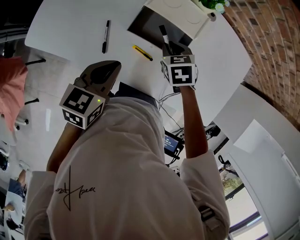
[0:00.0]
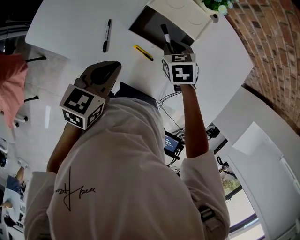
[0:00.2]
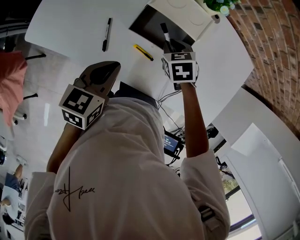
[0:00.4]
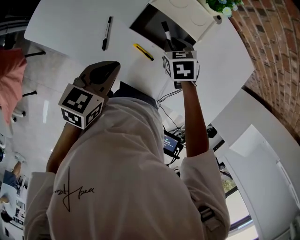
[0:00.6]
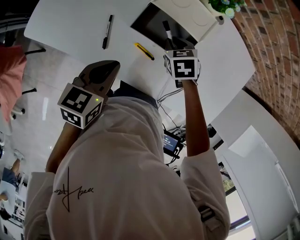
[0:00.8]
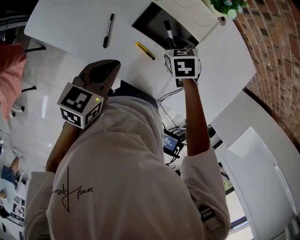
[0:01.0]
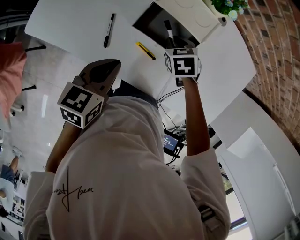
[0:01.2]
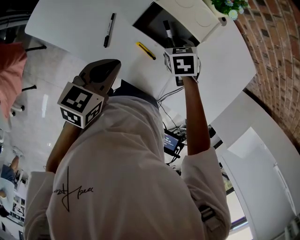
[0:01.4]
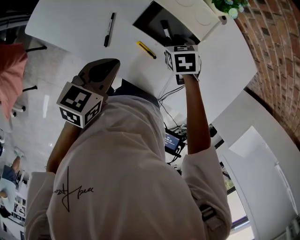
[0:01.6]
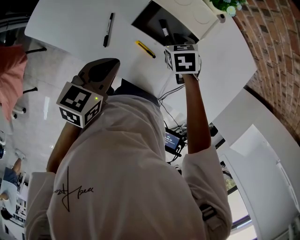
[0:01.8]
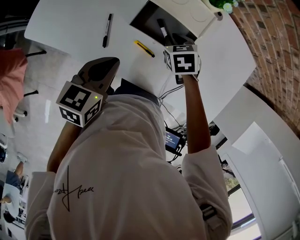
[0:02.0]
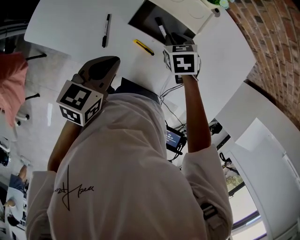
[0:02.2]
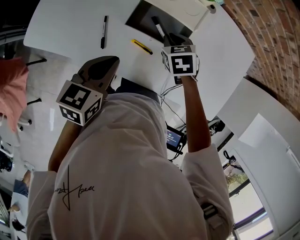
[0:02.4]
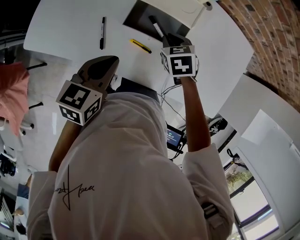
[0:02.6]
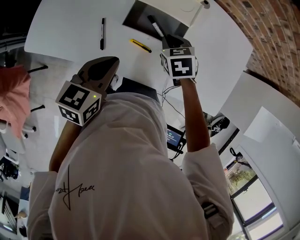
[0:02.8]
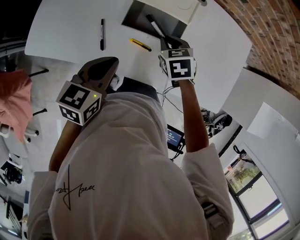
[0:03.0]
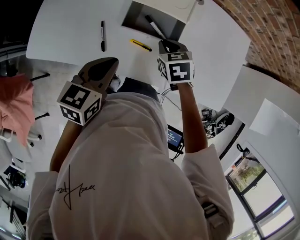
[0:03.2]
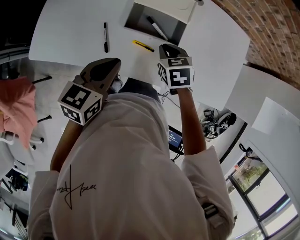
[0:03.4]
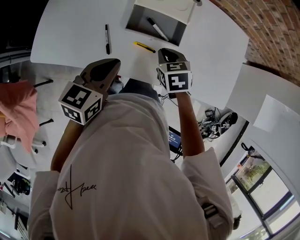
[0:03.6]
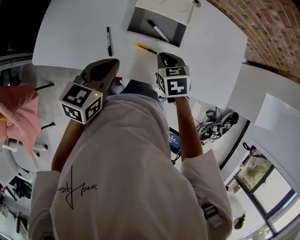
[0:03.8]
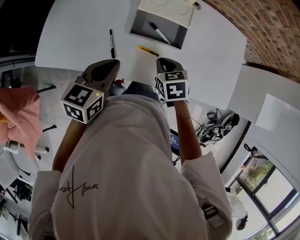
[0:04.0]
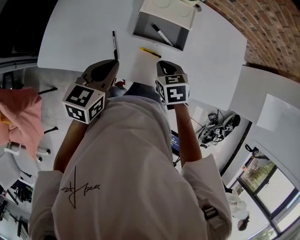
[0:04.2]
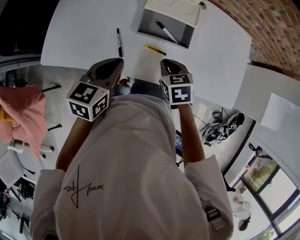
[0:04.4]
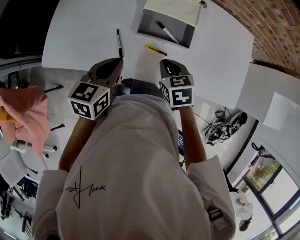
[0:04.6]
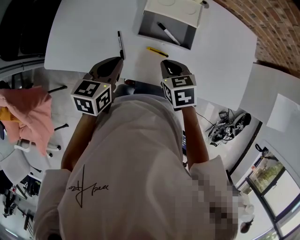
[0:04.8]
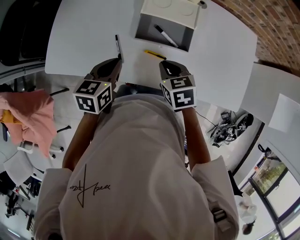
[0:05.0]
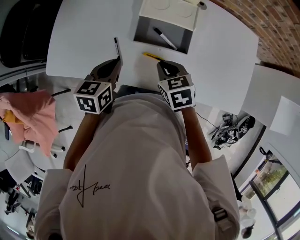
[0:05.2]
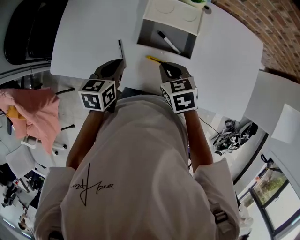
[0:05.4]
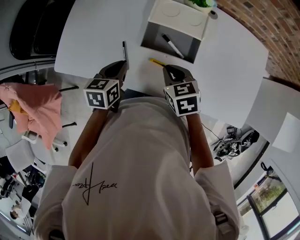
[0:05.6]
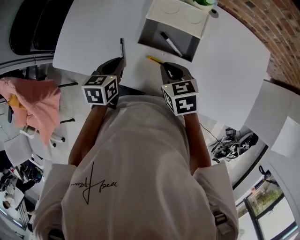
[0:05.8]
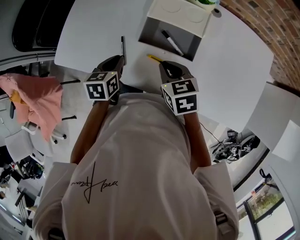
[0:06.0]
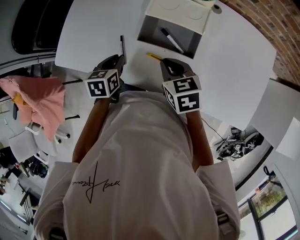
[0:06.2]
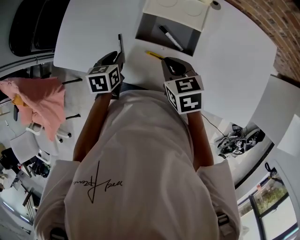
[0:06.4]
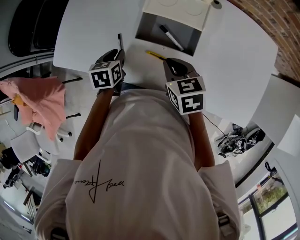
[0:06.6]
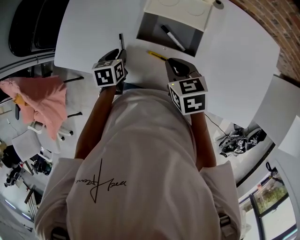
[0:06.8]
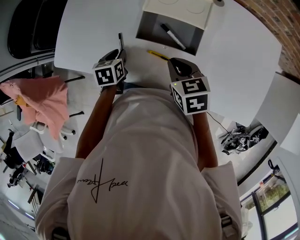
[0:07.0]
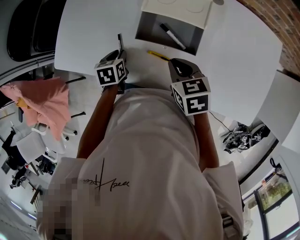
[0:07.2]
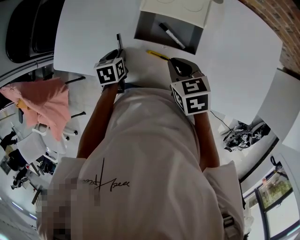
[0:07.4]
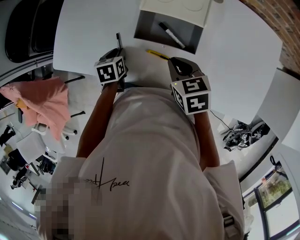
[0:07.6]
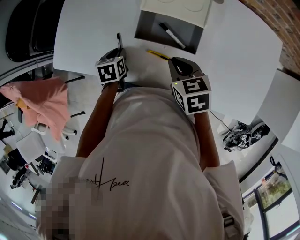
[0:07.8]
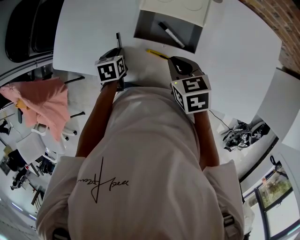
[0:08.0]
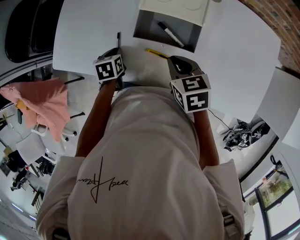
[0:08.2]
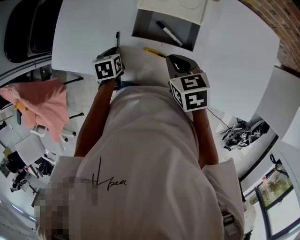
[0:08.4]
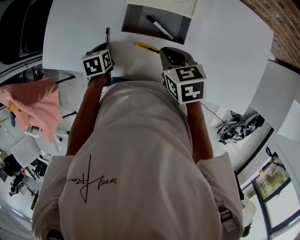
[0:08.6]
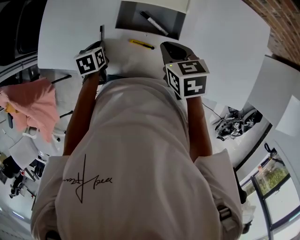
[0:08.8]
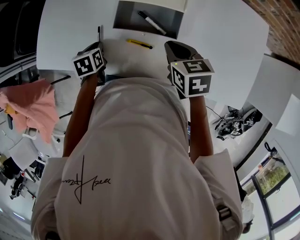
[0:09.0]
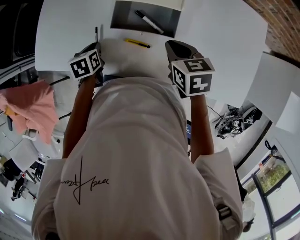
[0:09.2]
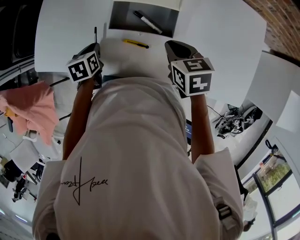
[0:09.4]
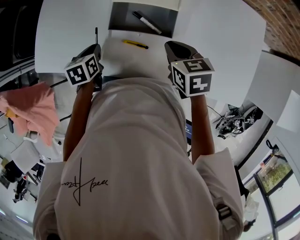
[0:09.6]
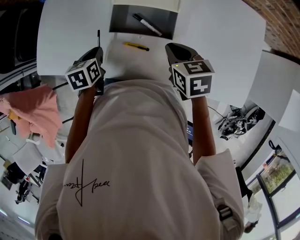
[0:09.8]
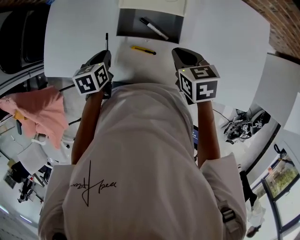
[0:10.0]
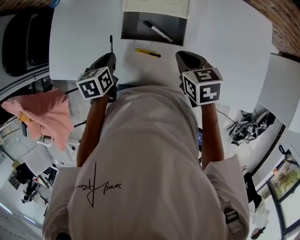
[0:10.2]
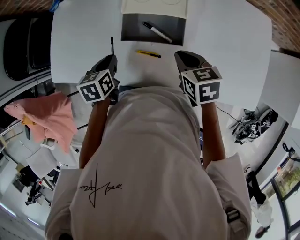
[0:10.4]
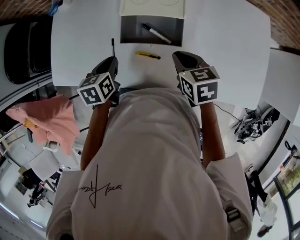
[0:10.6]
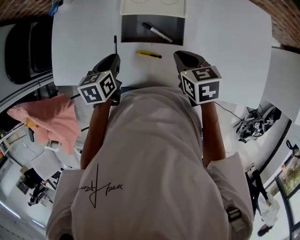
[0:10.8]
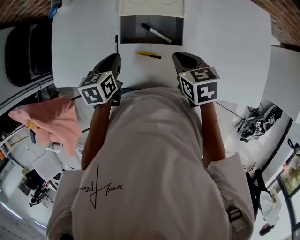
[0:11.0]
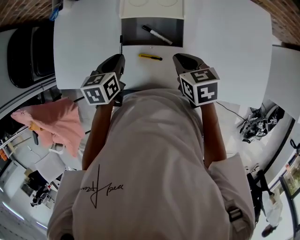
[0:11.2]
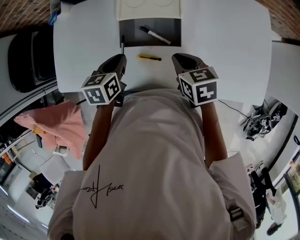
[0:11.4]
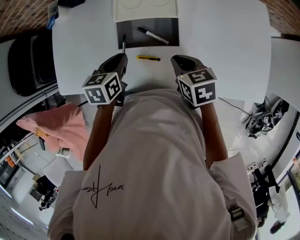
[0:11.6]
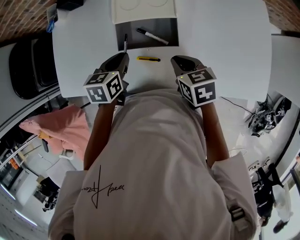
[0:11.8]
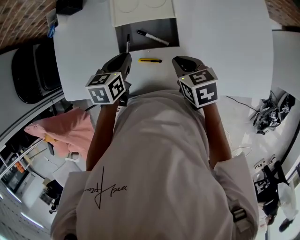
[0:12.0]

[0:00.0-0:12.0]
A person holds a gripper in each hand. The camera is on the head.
0:00.0 to 0:01.6: The grippers make only small movements.
0:01.6 to 0:03.0: The right gripper travels upward by approximately 5 cm.
0:03.0 to 0:04.4: The left gripper heads to the left, covering roughly 5 cm. Meanwhile the right gripper is displaced backward by approximately 10 cm.
0:04.4 to 0:06.0: The left gripper moves downward and forward, about 10 cm, and rotates some 30 degrees.
0:06.0 to 0:07.6: The left gripper is displaced downward by roughly 10 cm.
0:07.6 to 0:09.0: The right gripper travels to the right by about 5 cm.
0:09.0 to 0:10.4: The left gripper goes about 10 cm upward.
0:10.4 to 0:12.0: The left gripper is displaced to the right by approximately 10 cm.

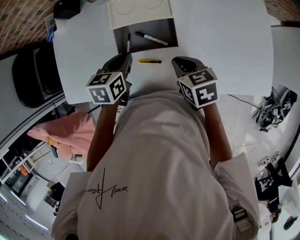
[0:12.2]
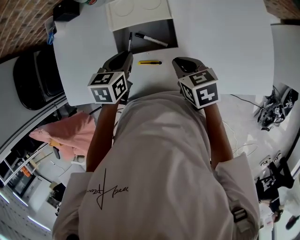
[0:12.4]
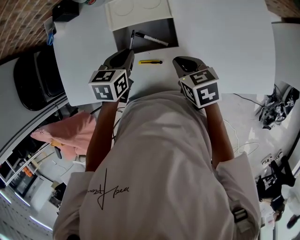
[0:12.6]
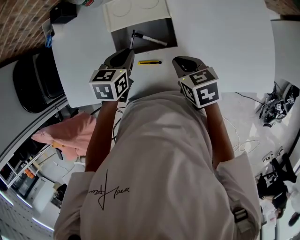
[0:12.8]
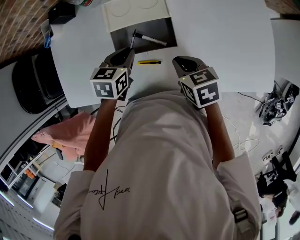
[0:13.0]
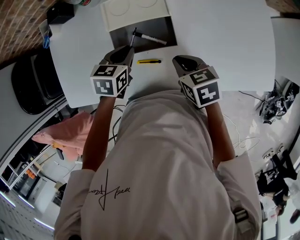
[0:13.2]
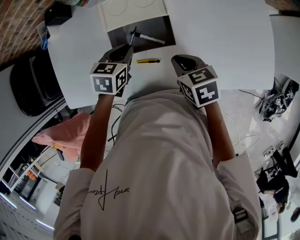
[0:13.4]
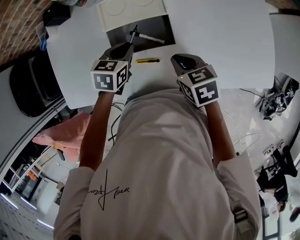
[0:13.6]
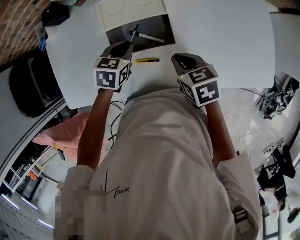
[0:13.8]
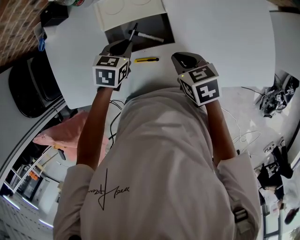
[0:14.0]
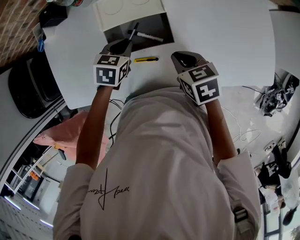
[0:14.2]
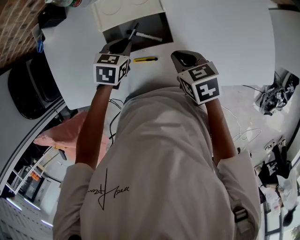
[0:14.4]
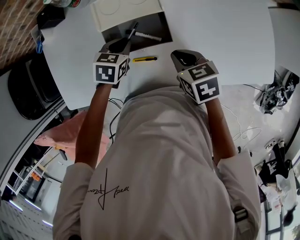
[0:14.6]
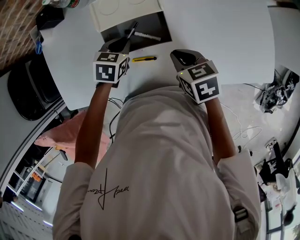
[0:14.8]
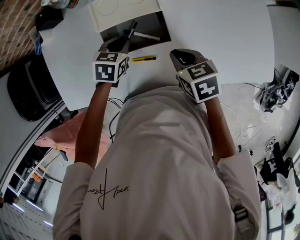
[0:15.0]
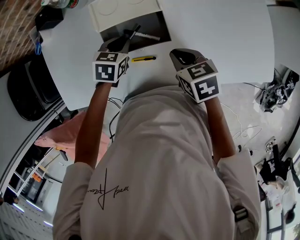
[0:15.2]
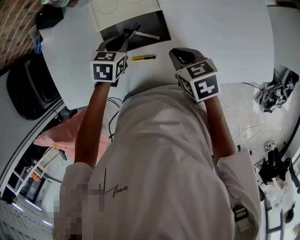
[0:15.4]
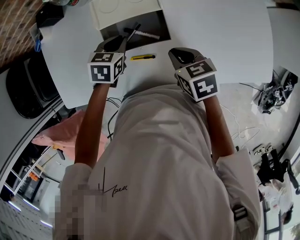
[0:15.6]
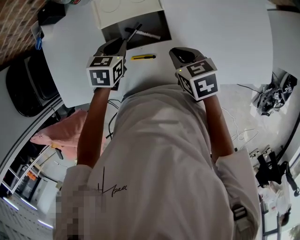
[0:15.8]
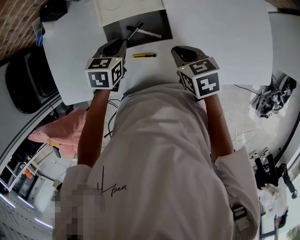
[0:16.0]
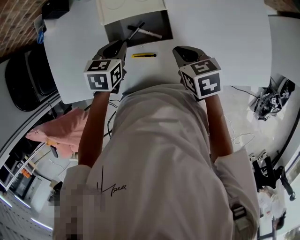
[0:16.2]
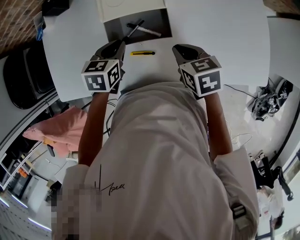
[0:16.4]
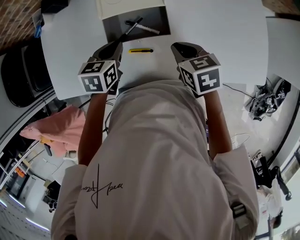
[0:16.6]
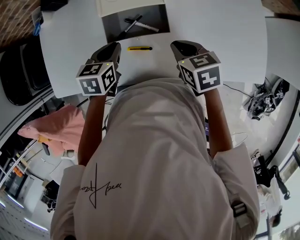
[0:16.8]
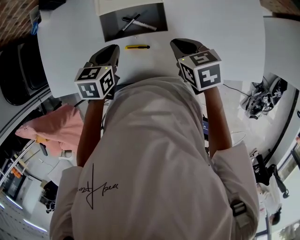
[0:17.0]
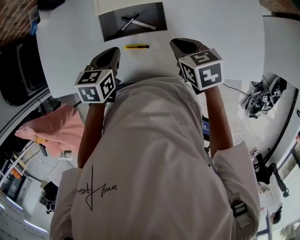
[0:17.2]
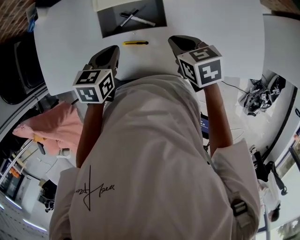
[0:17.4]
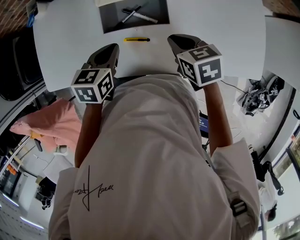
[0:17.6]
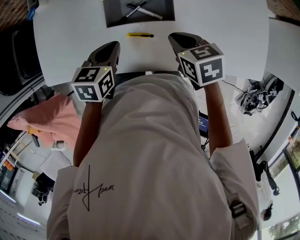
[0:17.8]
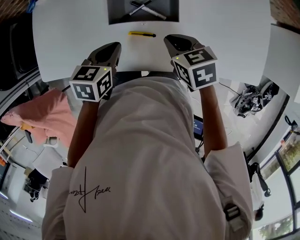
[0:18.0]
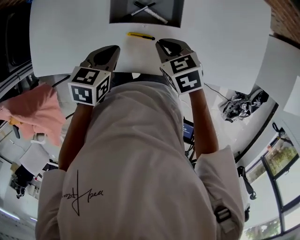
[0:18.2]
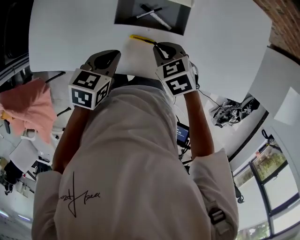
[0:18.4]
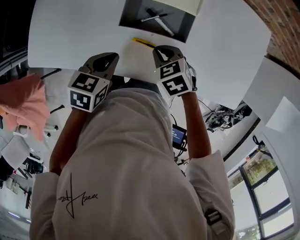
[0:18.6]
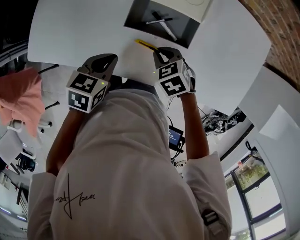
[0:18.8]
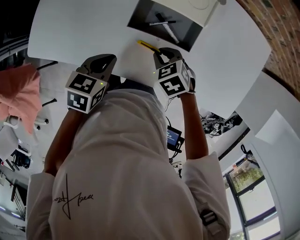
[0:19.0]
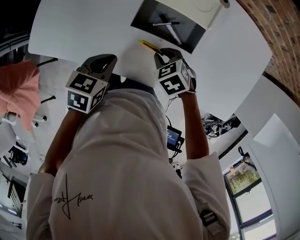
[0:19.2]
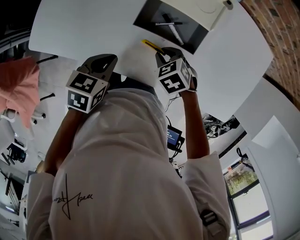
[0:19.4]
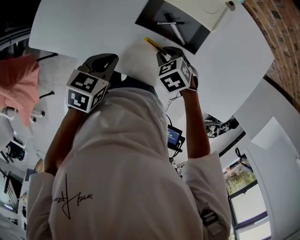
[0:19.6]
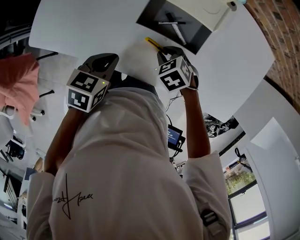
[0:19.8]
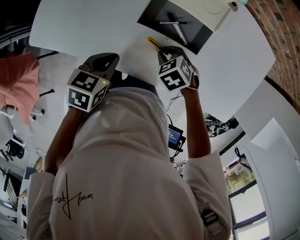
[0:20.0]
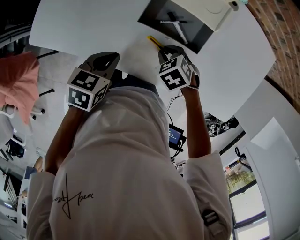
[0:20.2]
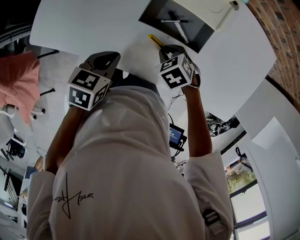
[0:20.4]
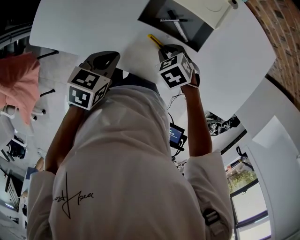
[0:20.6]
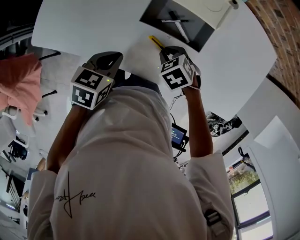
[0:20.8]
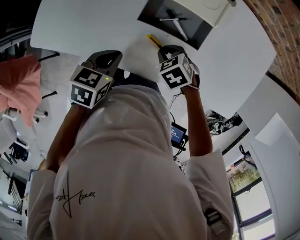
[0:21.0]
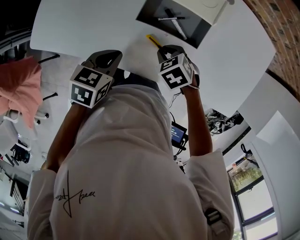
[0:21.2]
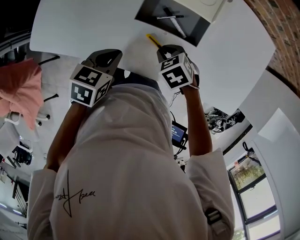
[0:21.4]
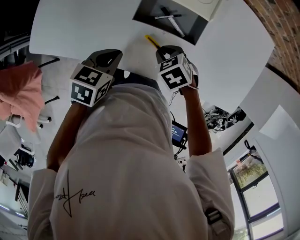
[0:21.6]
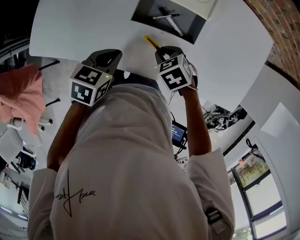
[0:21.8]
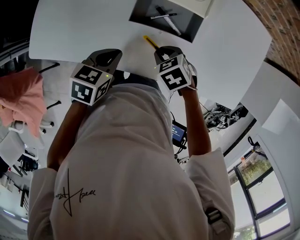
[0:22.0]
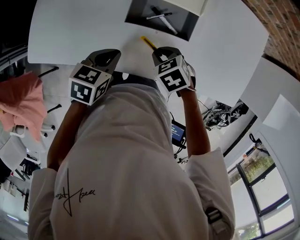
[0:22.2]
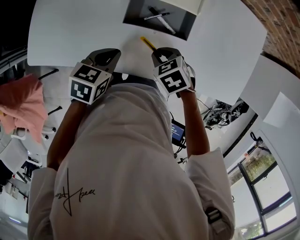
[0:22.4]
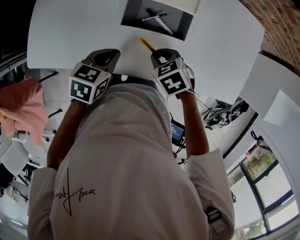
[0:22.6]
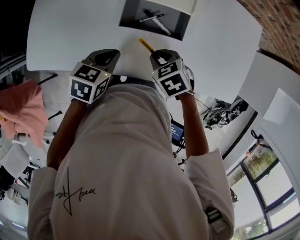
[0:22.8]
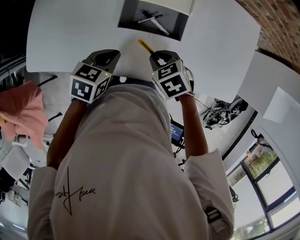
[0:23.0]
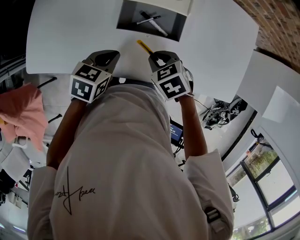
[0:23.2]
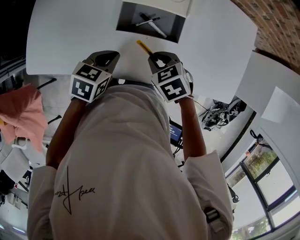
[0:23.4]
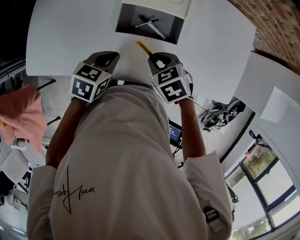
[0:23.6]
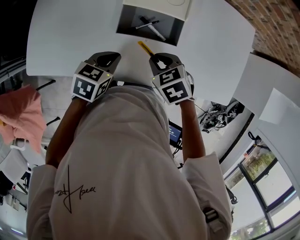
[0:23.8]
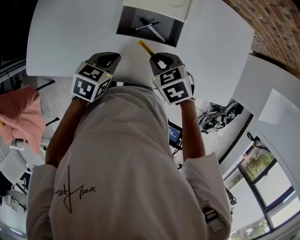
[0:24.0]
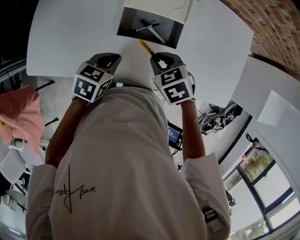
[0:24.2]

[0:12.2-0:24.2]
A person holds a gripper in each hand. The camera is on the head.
0:12.2 to 0:13.8: The left gripper changes place by about 5 cm, and turns by about 20 degrees.
0:13.8 to 0:15.2: The grippers stay close to where they were, moving slightly.
0:15.2 to 0:16.6: The left gripper shifts about 5 cm upward.
0:16.6 to 0:18.2: The left gripper travels backward by roughly 10 cm. Meanwhile the right gripper is displaced to the left by approximately 10 cm.
0:18.2 to 0:19.8: The right gripper travels downward by about 5 cm, and turns by roughly 30 degrees; the left gripper heads to the left, covering approximately 5 cm.
0:19.8 to 0:22.6: There are only small adjustments of the grippers.
0:22.6 to 0:24.2: The right gripper goes about 5 cm upward.
